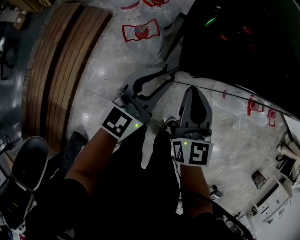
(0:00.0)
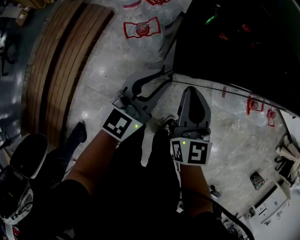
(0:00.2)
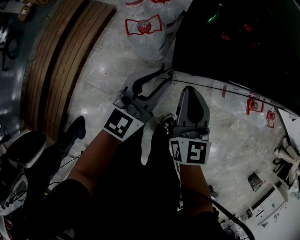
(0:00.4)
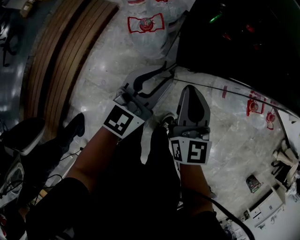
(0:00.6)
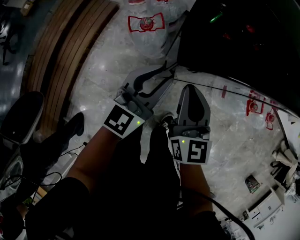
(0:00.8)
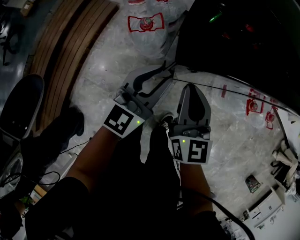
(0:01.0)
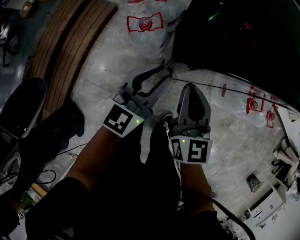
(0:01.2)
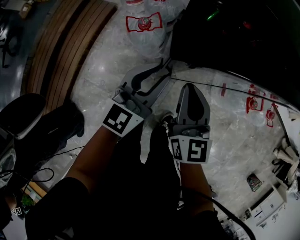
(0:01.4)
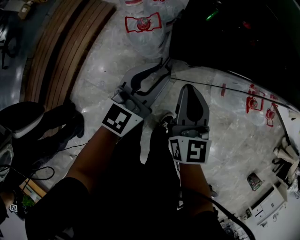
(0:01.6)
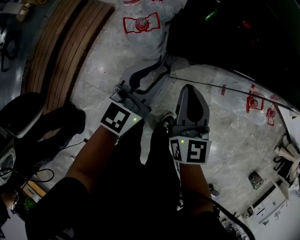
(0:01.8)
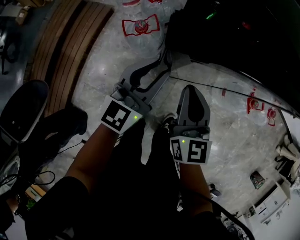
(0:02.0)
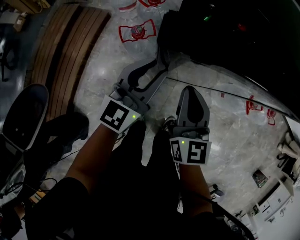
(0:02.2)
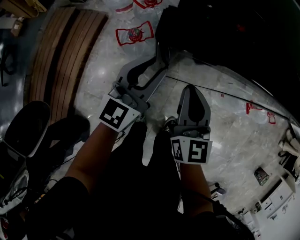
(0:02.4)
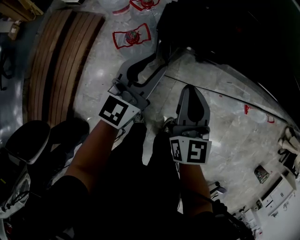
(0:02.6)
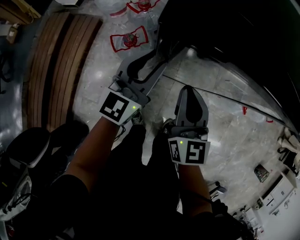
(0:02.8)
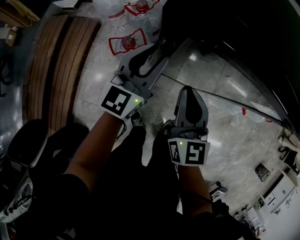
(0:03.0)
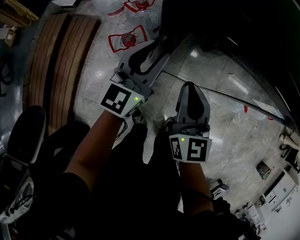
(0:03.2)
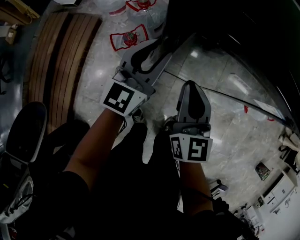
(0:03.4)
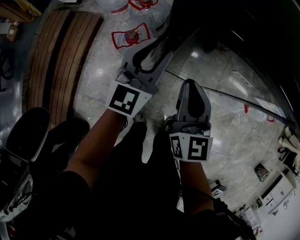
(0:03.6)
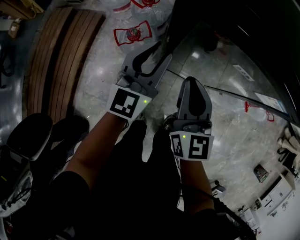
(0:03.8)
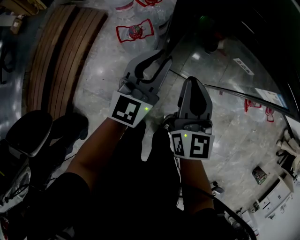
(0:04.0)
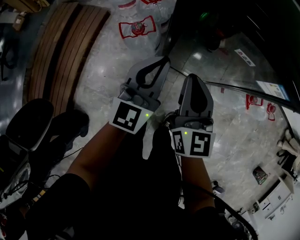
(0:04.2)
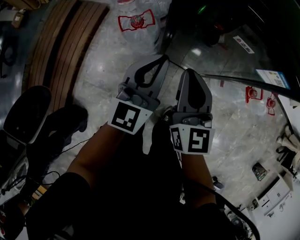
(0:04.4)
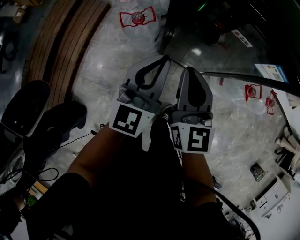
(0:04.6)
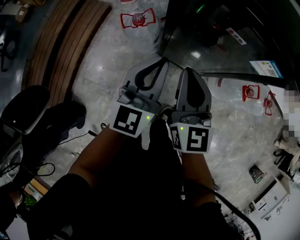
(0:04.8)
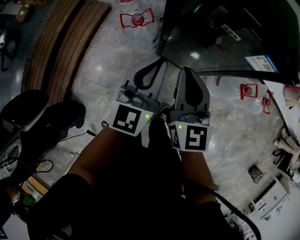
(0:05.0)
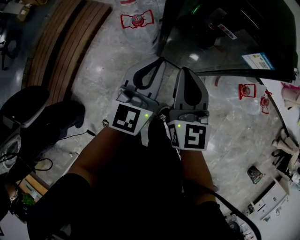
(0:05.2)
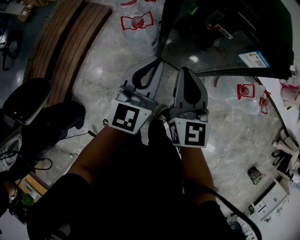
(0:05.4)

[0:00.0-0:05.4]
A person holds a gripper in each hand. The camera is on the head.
0:00.0 to 0:01.4: The grippers move only a little.
0:01.4 to 0:02.8: The right gripper shifts some 10 cm forward. The left gripper is displaced forward by approximately 15 cm.
0:02.8 to 0:04.0: There are only small adjustments of the grippers.
0:04.0 to 0:05.4: The grippers both shift backward and upward by some 15 cm.

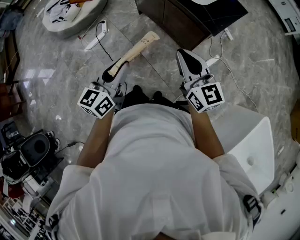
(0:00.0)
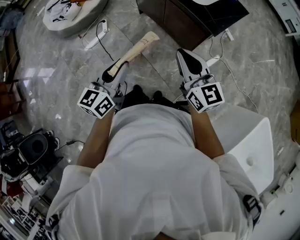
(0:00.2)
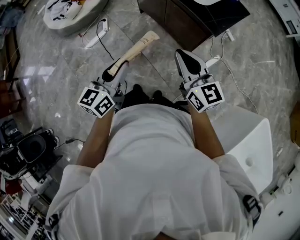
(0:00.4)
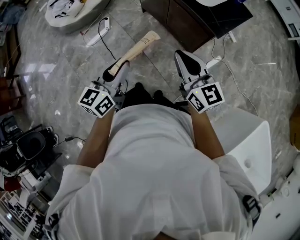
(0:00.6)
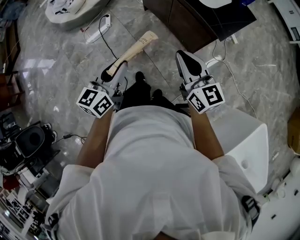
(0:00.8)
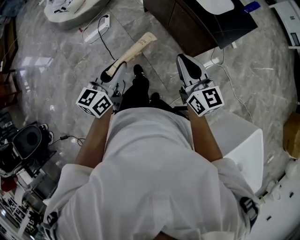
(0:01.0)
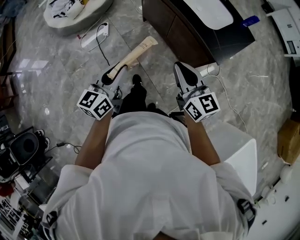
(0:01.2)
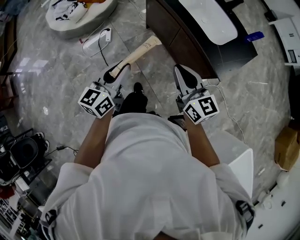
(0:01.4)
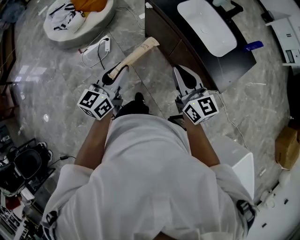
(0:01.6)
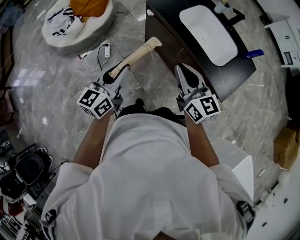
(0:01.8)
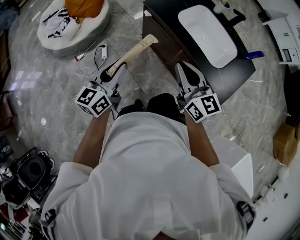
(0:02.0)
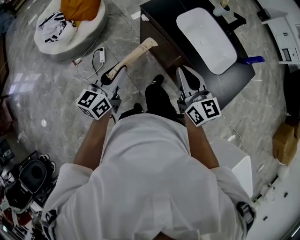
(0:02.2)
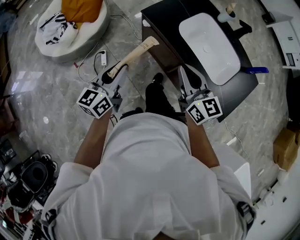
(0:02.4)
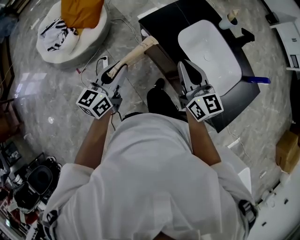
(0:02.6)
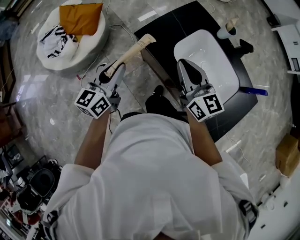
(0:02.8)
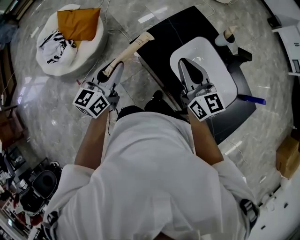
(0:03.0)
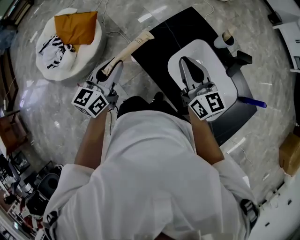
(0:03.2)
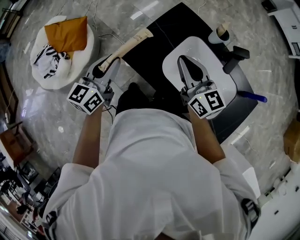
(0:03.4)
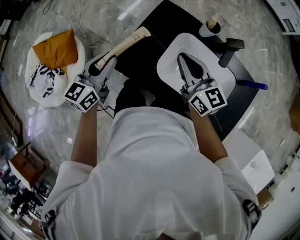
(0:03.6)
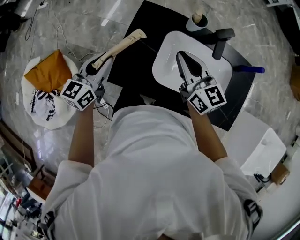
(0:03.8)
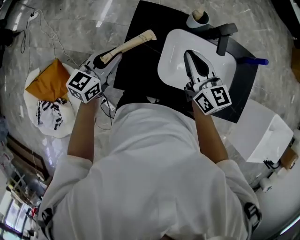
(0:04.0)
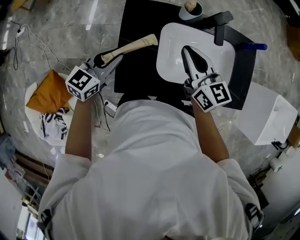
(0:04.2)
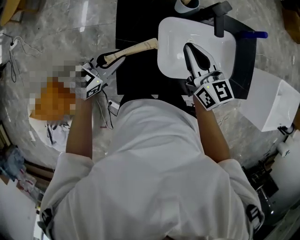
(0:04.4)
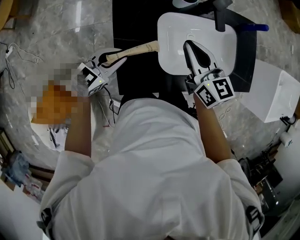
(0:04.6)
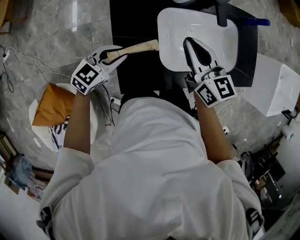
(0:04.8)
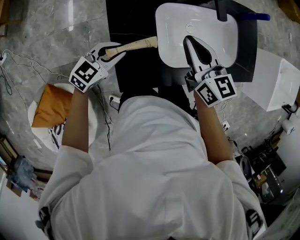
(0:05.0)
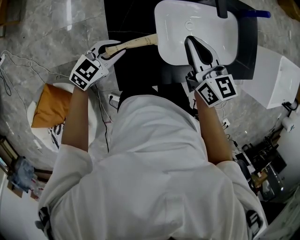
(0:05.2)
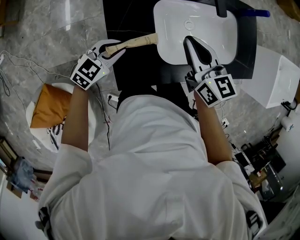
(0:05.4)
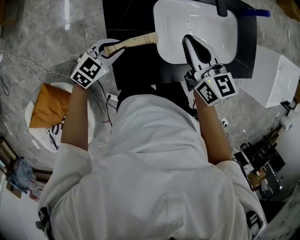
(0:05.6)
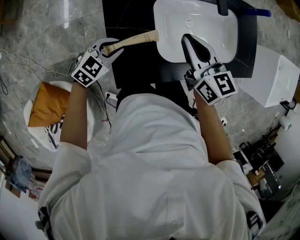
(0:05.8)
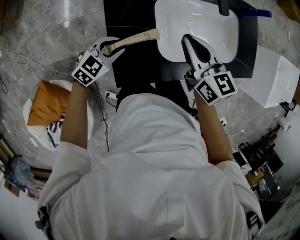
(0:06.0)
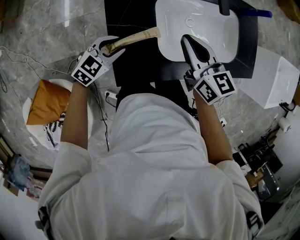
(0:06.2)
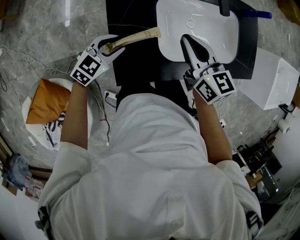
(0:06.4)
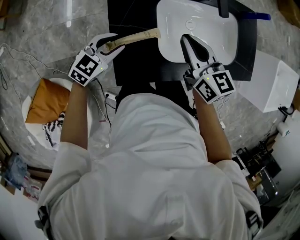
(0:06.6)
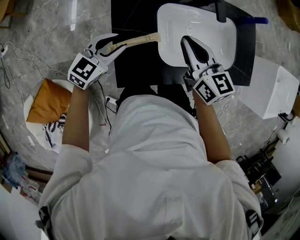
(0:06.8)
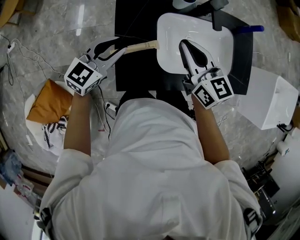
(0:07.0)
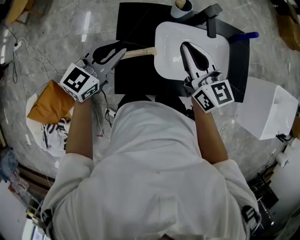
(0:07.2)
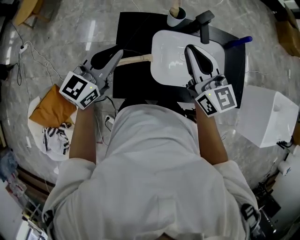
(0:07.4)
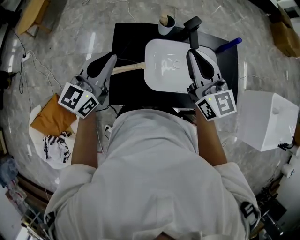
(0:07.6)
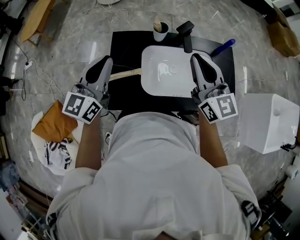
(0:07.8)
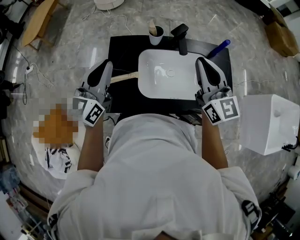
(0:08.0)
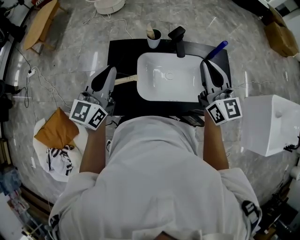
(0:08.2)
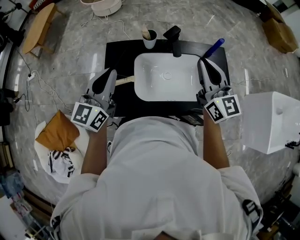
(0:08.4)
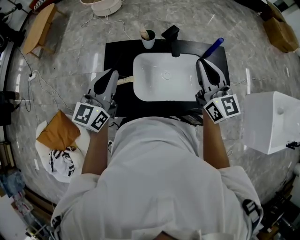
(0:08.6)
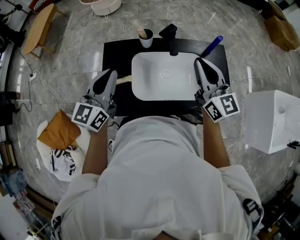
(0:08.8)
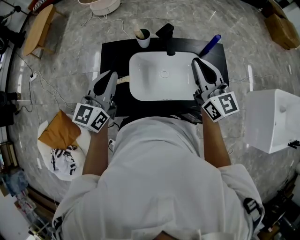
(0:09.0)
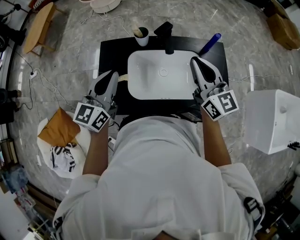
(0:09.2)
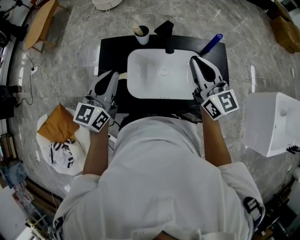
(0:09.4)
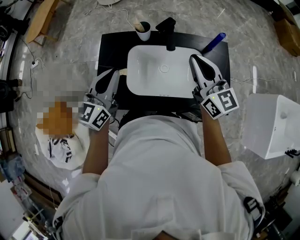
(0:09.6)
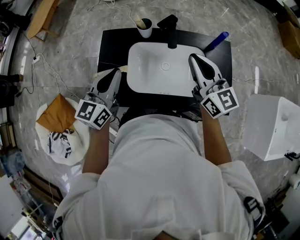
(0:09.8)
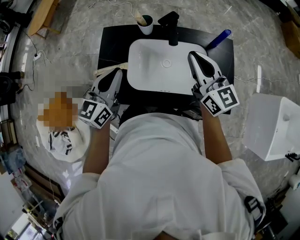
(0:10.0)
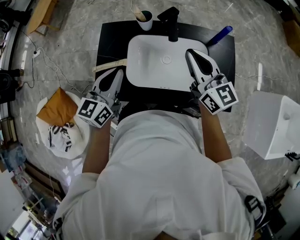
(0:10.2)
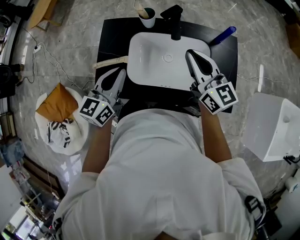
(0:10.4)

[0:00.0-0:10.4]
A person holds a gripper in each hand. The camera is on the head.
0:00.0 to 0:01.4: The right gripper is displaced forward and to the left by roughly 15 cm. Meanwhile the left gripper shifts roughly 20 cm forward.
0:01.4 to 0:03.0: The pair of grippers is taken forward, about 50 cm.
0:03.0 to 0:04.4: The left gripper moves roughly 30 cm, and turns by about 80 degrees. The right gripper ends up approximately 20 cm from where it was, and rotates approximately 50 degrees.
0:04.4 to 0:06.0: The right gripper changes place by approximately 5 cm; the left gripper moves downward, some 10 cm, and swivels some 20 degrees.
0:06.0 to 0:07.4: The left gripper heads upward, covering roughly 25 cm, and swivels some 40 degrees; the right gripper heads upward, covering approximately 15 cm, and swivels roughly 20 degrees.
0:07.4 to 0:09.0: The left gripper heads to the right, covering roughly 10 cm, while the right gripper shifts about 20 cm to the right.
0:09.0 to 0:10.4: The two grippers go roughly 5 cm downward.

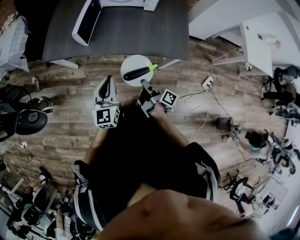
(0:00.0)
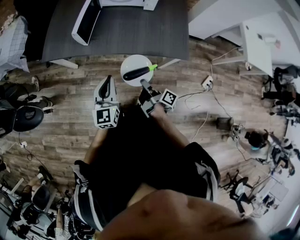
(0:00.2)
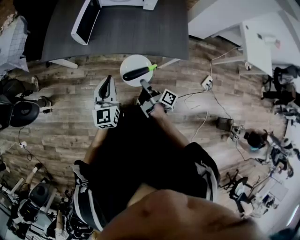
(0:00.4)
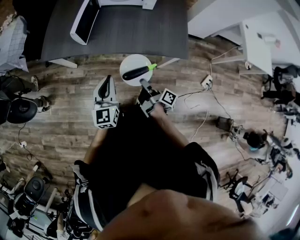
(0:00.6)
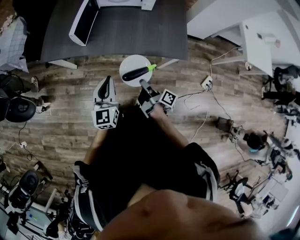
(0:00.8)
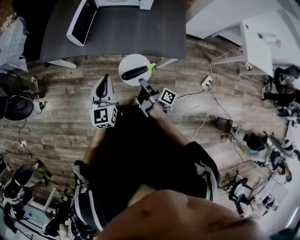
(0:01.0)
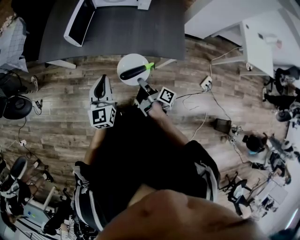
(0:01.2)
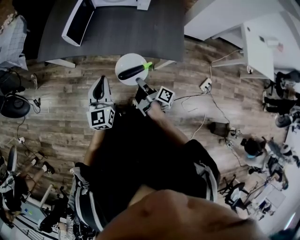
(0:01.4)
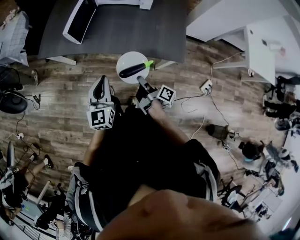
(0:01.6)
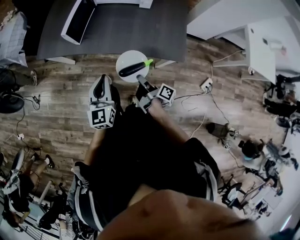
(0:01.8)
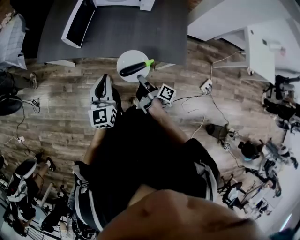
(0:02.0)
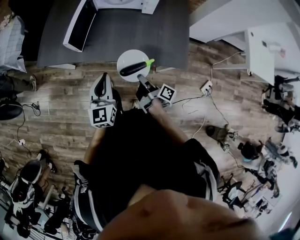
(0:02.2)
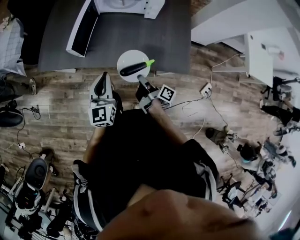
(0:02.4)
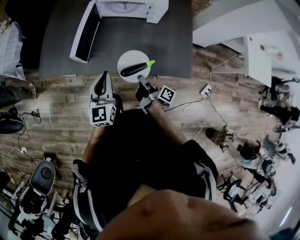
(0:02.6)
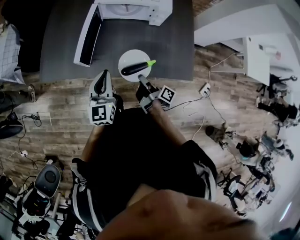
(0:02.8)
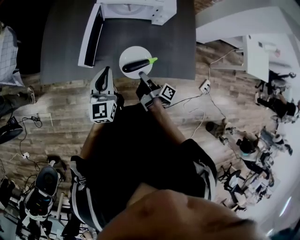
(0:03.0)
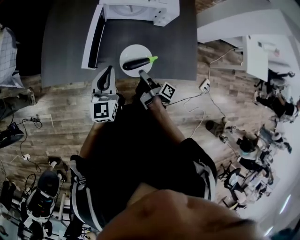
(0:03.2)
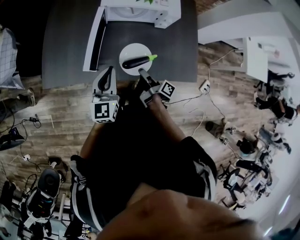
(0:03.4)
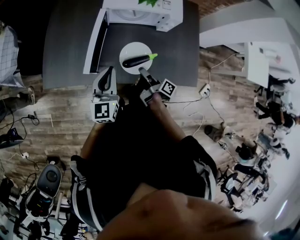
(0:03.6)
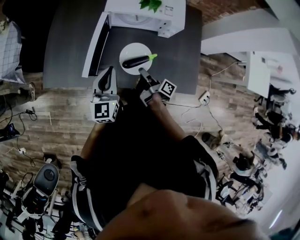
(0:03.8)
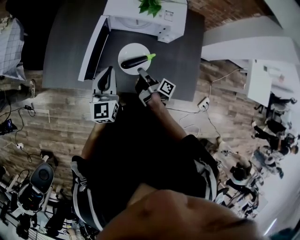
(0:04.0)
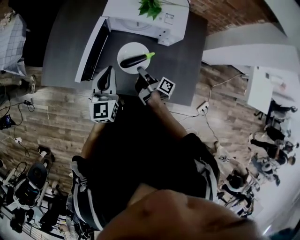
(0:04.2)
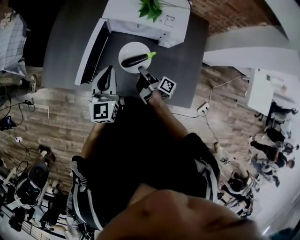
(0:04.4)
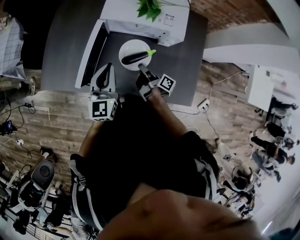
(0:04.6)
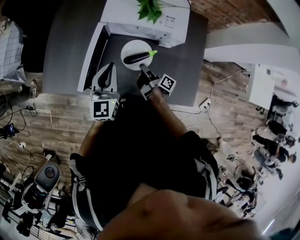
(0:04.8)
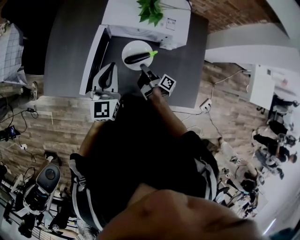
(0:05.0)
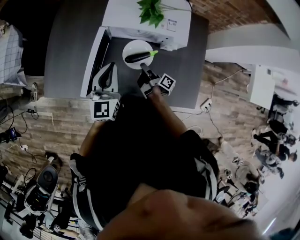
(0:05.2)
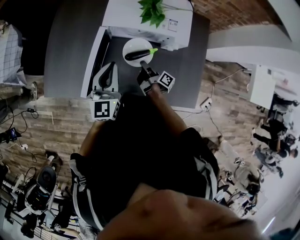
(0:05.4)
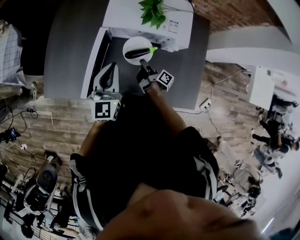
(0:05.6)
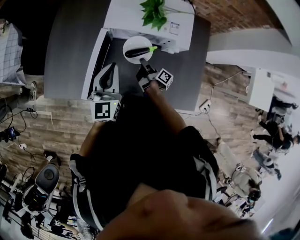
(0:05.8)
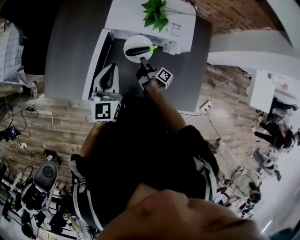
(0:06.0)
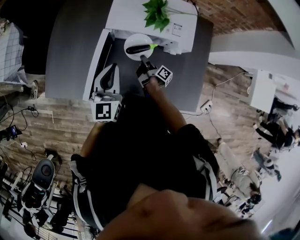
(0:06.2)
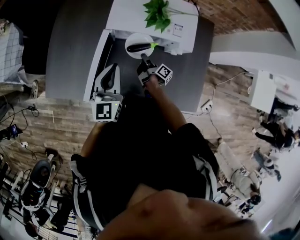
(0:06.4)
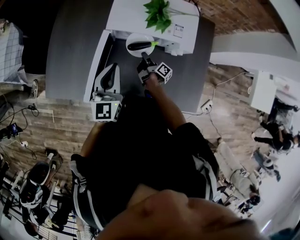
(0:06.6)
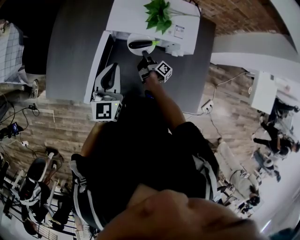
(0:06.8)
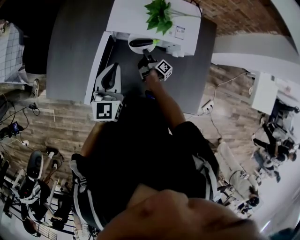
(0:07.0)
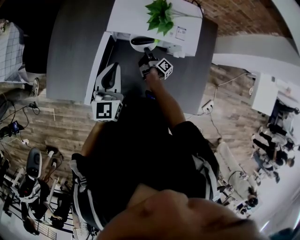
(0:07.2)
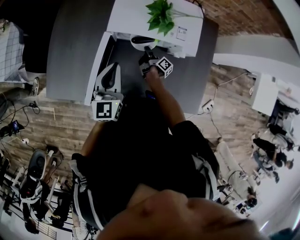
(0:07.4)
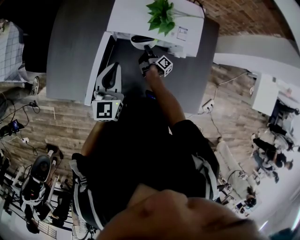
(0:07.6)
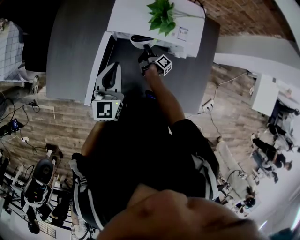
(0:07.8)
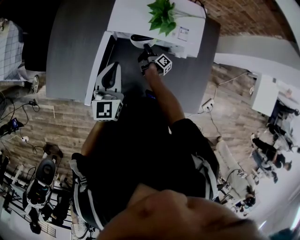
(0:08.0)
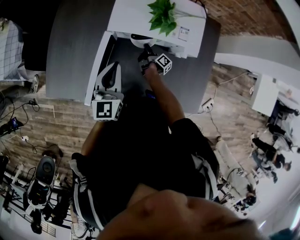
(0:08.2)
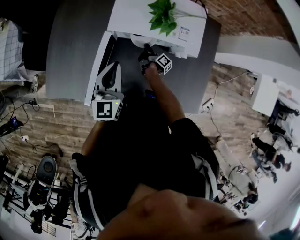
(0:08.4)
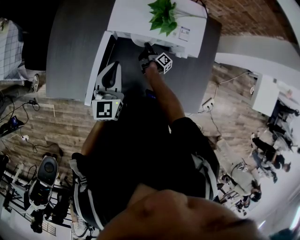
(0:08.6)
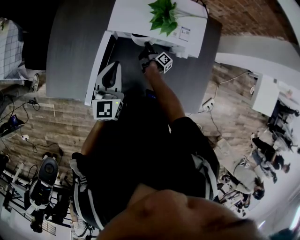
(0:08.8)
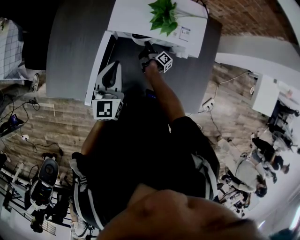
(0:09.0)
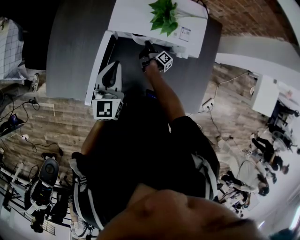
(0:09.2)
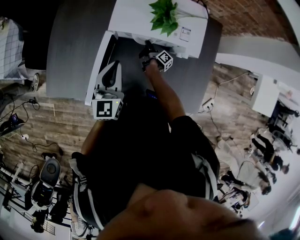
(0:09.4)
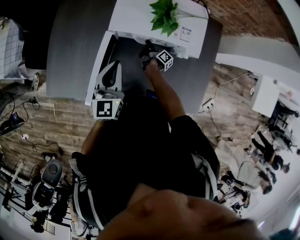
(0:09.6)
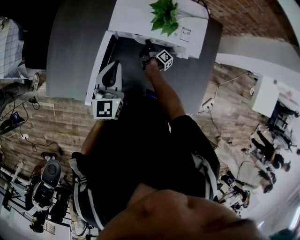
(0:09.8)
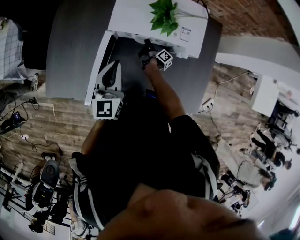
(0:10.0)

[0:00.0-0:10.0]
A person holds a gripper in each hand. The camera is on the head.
0:00.0 to 0:01.4: The left gripper ends up roughly 5 cm from where it was.
0:01.4 to 0:02.8: The left gripper ends up some 25 cm from where it was.
0:02.8 to 0:04.2: The left gripper changes place by roughly 15 cm.
0:04.2 to 0:05.8: The left gripper ends up approximately 10 cm from where it was.
